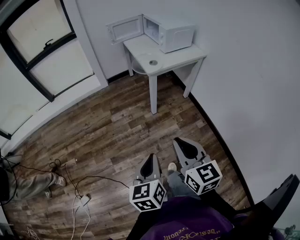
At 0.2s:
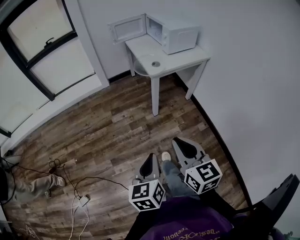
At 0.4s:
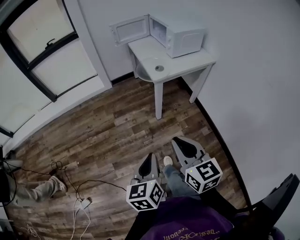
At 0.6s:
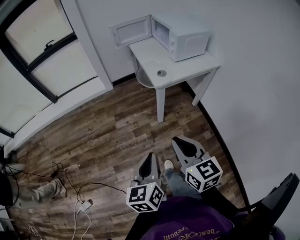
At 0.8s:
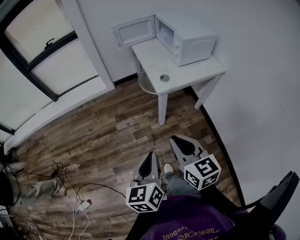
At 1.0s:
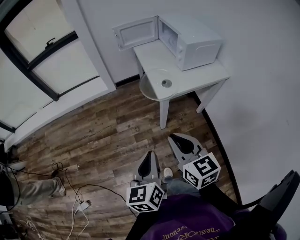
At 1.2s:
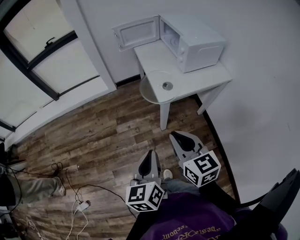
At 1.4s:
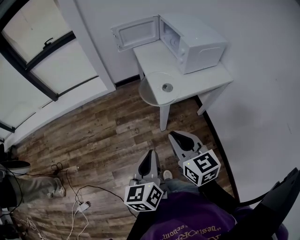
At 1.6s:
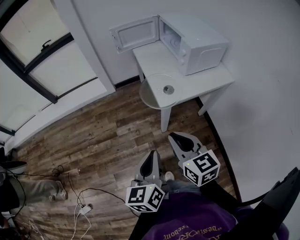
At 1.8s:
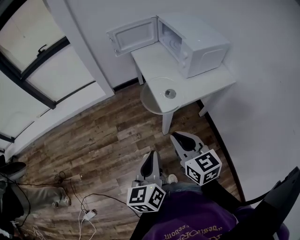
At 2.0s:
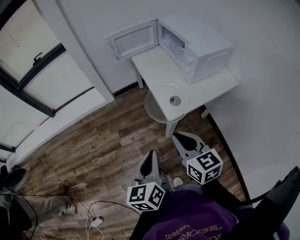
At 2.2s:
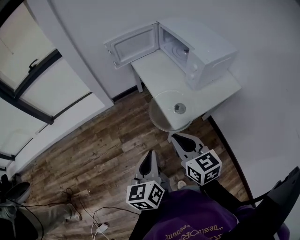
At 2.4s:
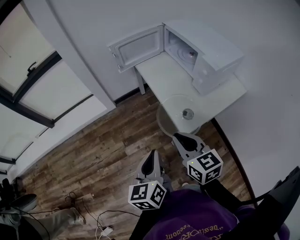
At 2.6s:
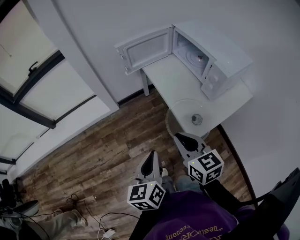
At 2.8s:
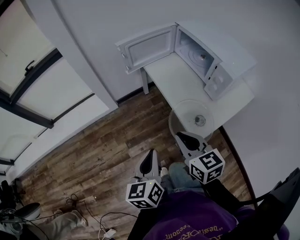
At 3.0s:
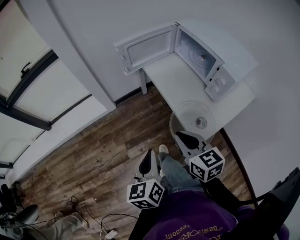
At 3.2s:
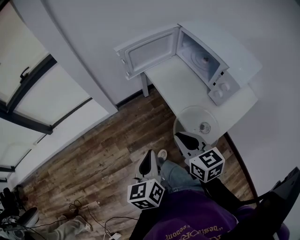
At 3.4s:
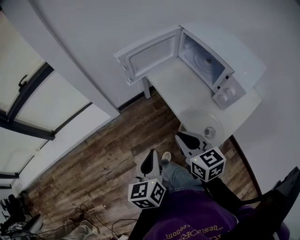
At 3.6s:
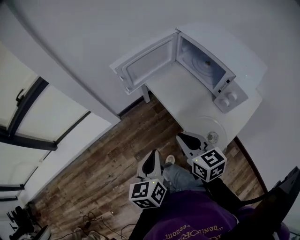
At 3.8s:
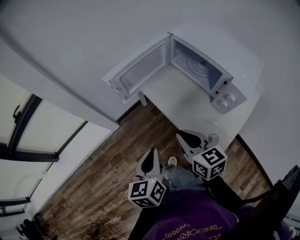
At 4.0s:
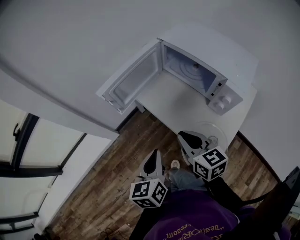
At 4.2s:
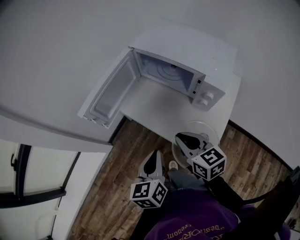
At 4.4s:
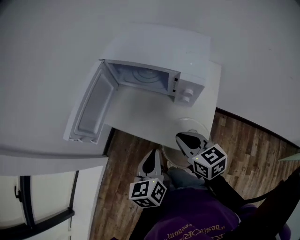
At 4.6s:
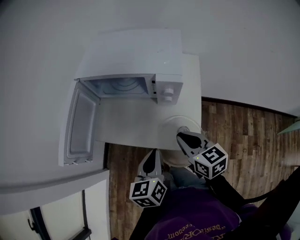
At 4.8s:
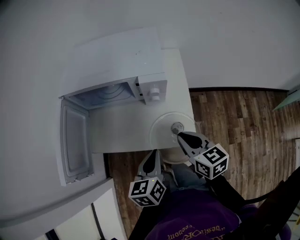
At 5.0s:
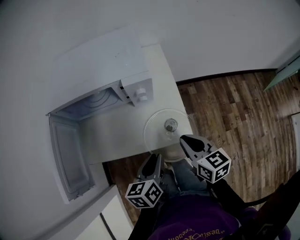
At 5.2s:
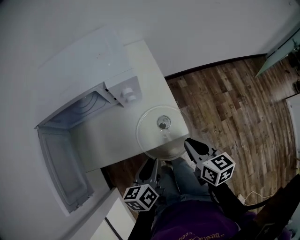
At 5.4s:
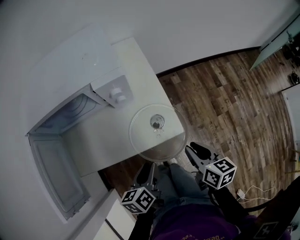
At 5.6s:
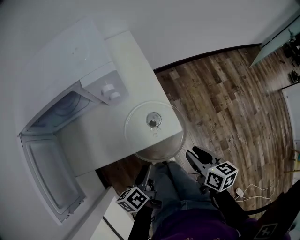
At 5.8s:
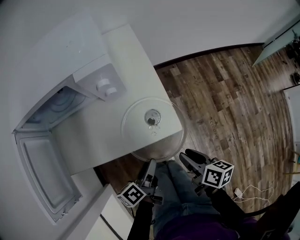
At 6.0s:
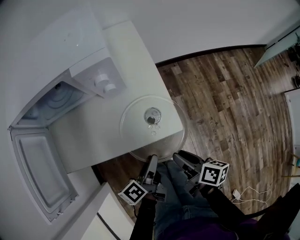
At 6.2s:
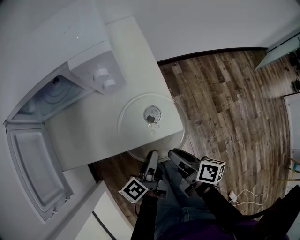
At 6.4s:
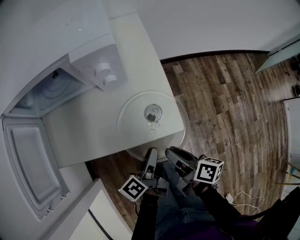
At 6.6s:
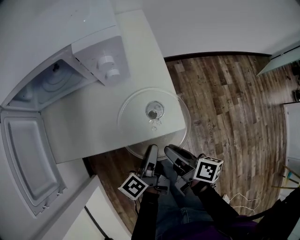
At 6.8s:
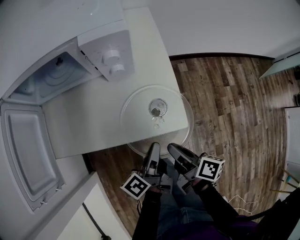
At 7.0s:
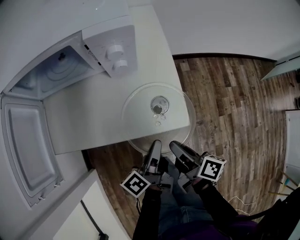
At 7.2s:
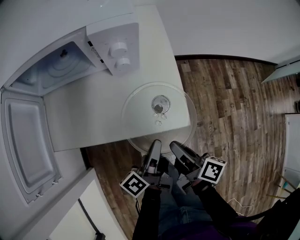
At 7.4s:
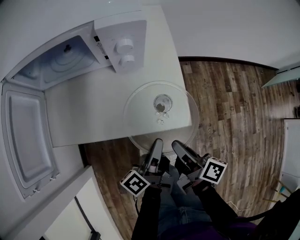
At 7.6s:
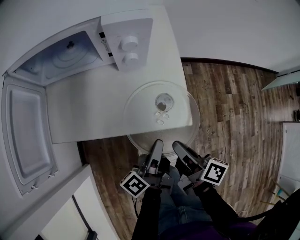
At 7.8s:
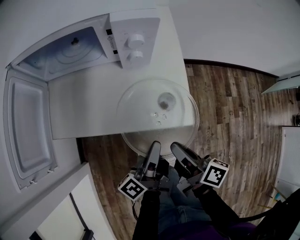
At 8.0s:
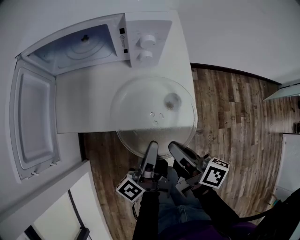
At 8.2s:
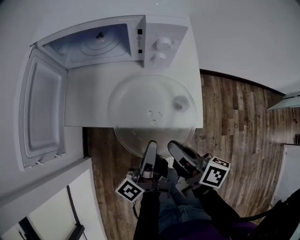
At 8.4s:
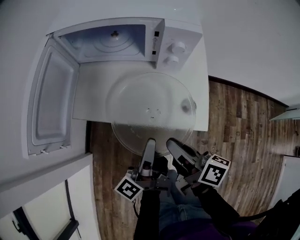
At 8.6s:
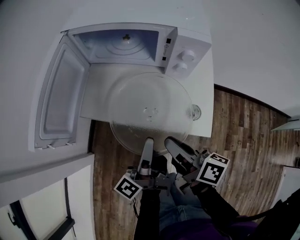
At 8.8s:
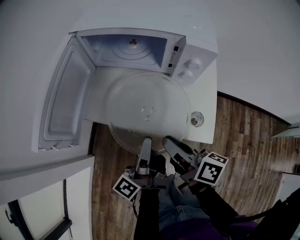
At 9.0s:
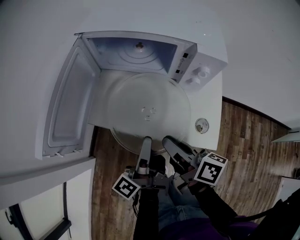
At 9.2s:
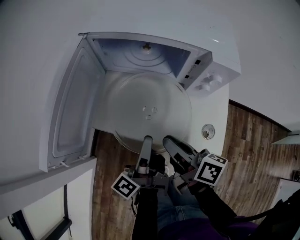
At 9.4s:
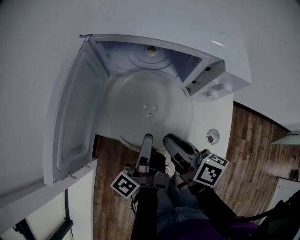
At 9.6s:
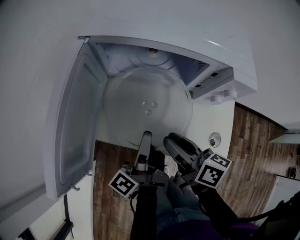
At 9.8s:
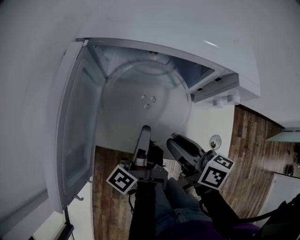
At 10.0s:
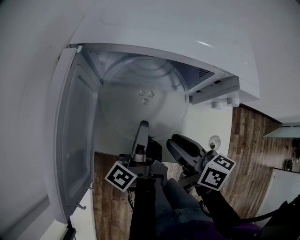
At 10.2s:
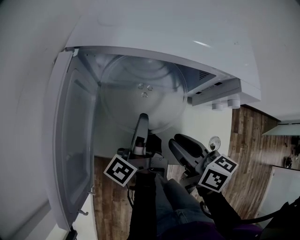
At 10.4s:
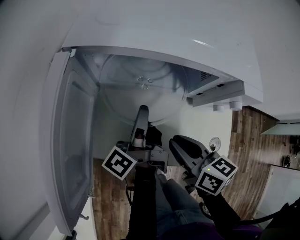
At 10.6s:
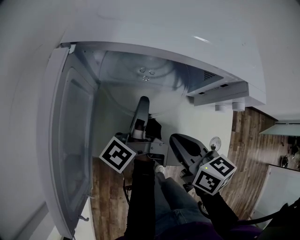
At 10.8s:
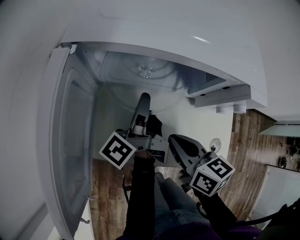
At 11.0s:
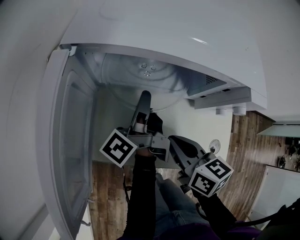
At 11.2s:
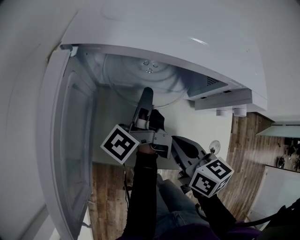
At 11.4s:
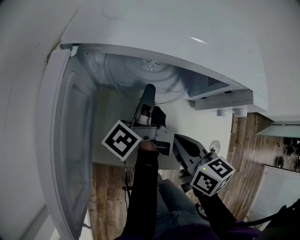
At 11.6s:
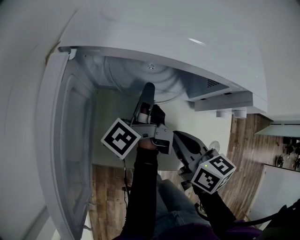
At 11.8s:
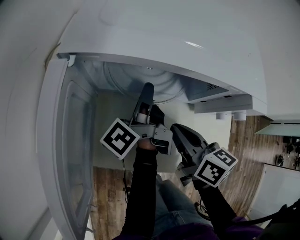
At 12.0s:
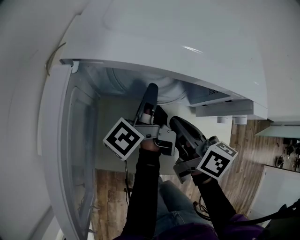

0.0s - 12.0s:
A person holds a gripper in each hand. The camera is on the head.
0.0s - 1.6s: The two grippers go about 35 cm forward.
1.6s - 3.0s: The right gripper heads forward, covering about 30 cm. The left gripper travels forward and to the left by some 35 cm.
3.0s - 4.4s: The left gripper moves roughly 20 cm, and swivels some 40 degrees. Meanwhile the right gripper moves about 15 cm, and turns by about 40 degrees.
4.4s - 6.0s: The left gripper heads downward, covering about 20 cm, turns by roughly 60 degrees, and opens its fingers, while the right gripper moves about 25 cm, rotates around the line of its fingers by some 60 degrees, clockwise from behind, and opens up.
6.0s - 7.6s: The right gripper closes up, while the left gripper turns by approximately 20 degrees, and closes.
7.6s - 9.0s: The right gripper ends up approximately 20 cm from where it was, and swivels some 30 degrees; the left gripper moves about 20 cm, and rotates some 30 degrees.
9.0s - 10.4s: The left gripper goes approximately 20 cm forward; the right gripper moves forward, some 10 cm, and rotates roughly 30 degrees.
10.4s - 12.0s: Both grippers travel together forward, roughly 10 cm.

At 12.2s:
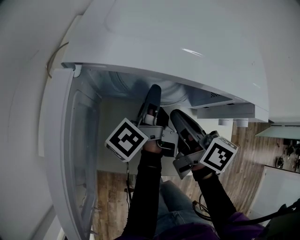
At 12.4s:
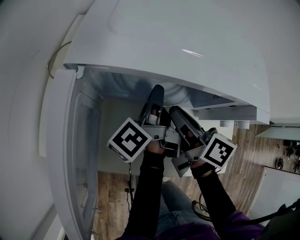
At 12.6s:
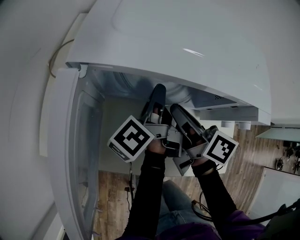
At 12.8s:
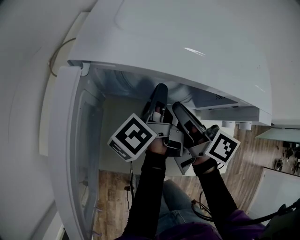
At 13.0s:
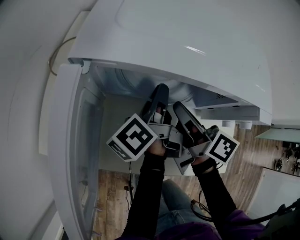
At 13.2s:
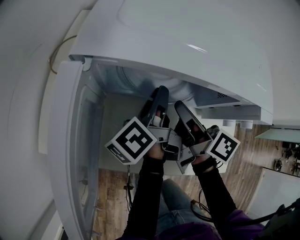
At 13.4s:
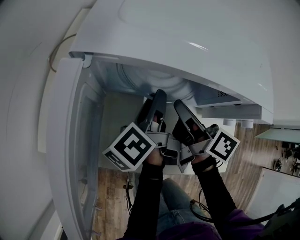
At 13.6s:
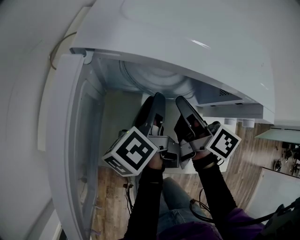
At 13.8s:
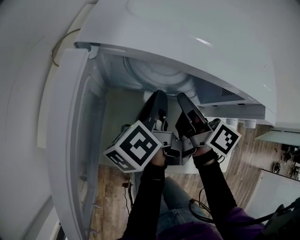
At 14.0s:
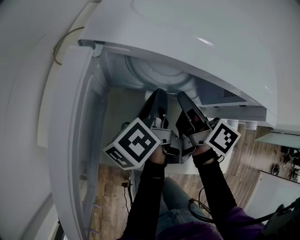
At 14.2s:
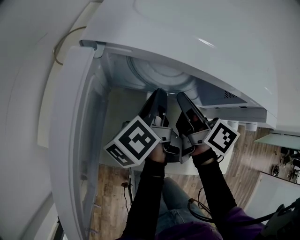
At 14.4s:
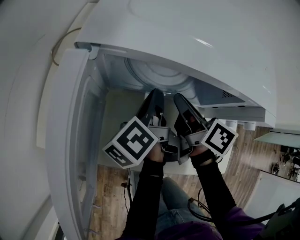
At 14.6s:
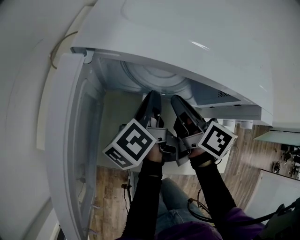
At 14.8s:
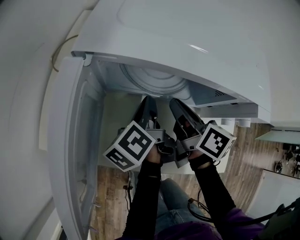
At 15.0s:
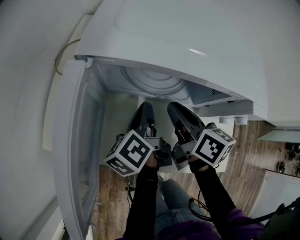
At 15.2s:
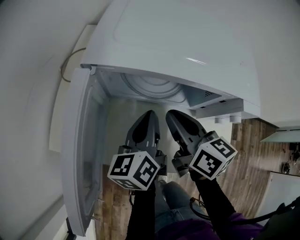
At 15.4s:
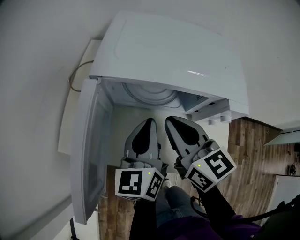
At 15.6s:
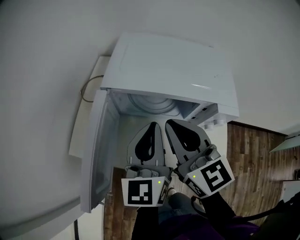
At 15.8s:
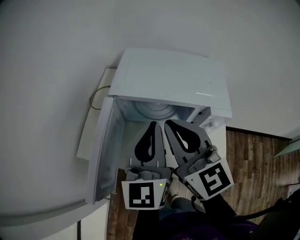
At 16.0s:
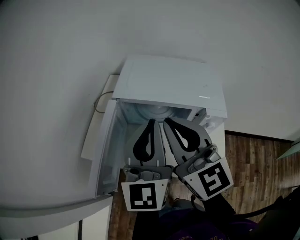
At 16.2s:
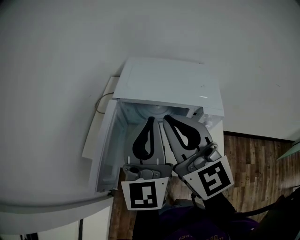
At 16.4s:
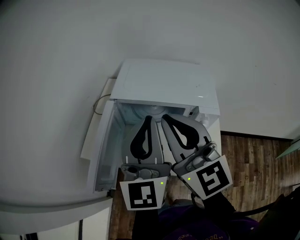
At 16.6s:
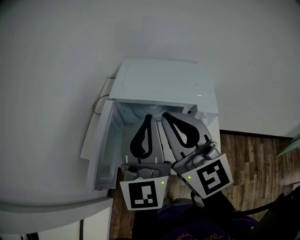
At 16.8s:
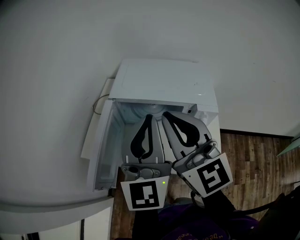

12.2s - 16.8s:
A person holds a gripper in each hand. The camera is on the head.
12.2s - 13.8s: The left gripper opens, then closes again.
13.8s - 15.2s: The left gripper changes place by roughly 5 cm, and rotates approximately 30 degrees. The right gripper is displaced upward by about 5 cm, and turns by approximately 20 degrees.
15.2s - 16.8s: Both grippers travel together upward, about 30 cm. The left gripper rotates around the line of its fingers by roughly 50 degrees, clockwise from behind. The right gripper twists approximately 40 degrees counterclockwise, seen from behind.

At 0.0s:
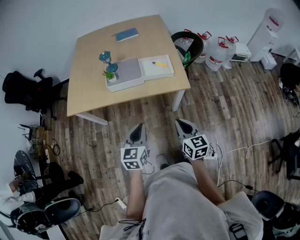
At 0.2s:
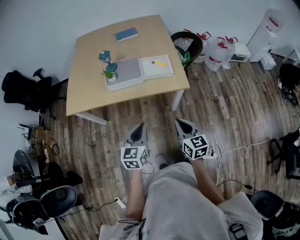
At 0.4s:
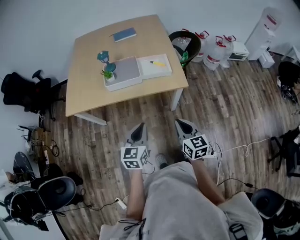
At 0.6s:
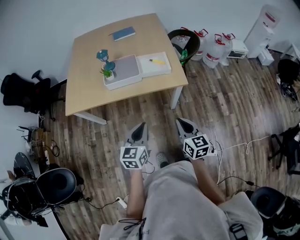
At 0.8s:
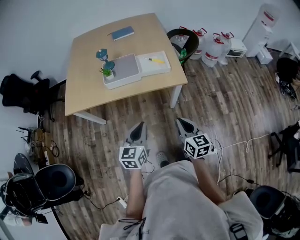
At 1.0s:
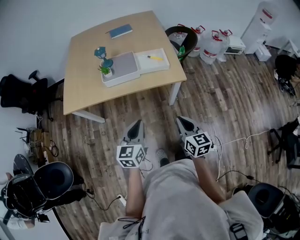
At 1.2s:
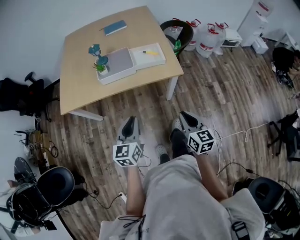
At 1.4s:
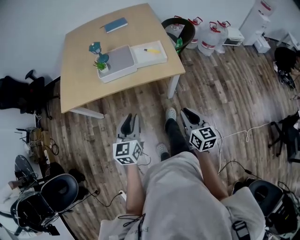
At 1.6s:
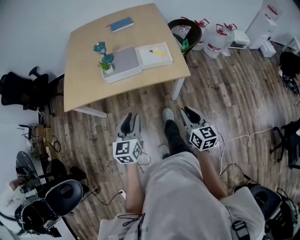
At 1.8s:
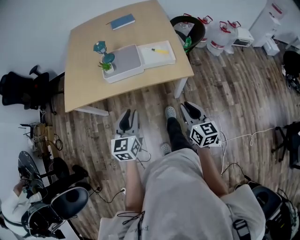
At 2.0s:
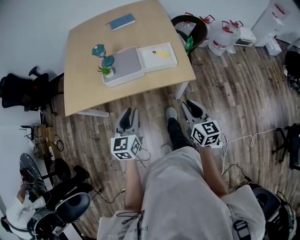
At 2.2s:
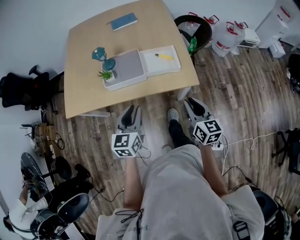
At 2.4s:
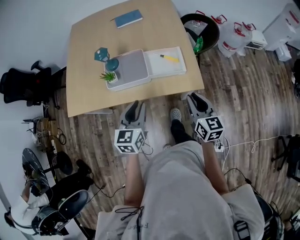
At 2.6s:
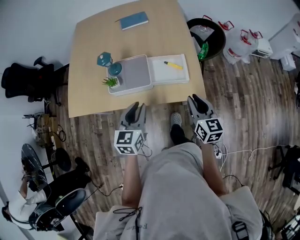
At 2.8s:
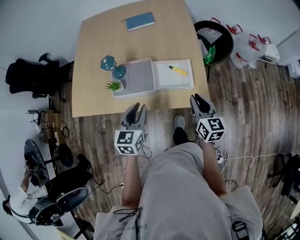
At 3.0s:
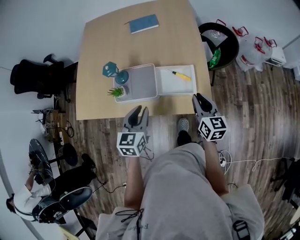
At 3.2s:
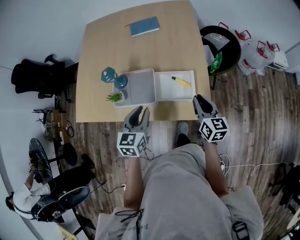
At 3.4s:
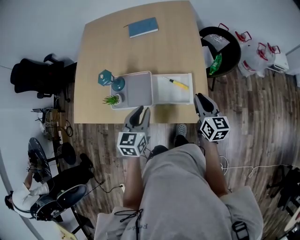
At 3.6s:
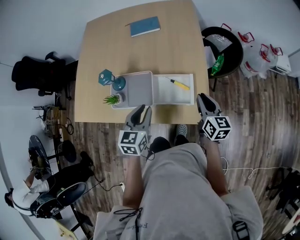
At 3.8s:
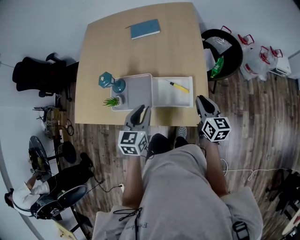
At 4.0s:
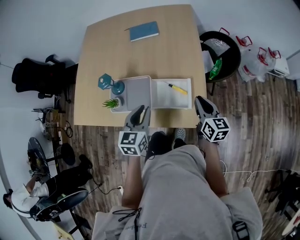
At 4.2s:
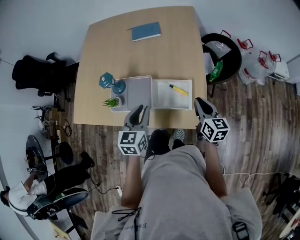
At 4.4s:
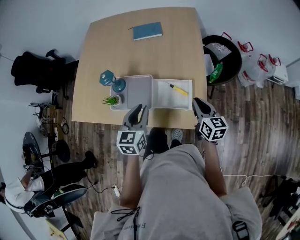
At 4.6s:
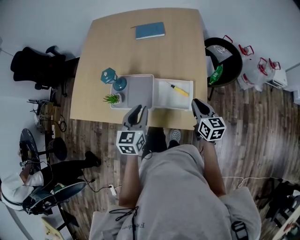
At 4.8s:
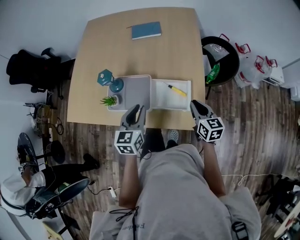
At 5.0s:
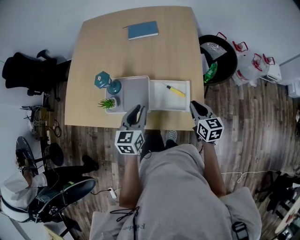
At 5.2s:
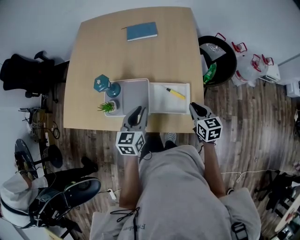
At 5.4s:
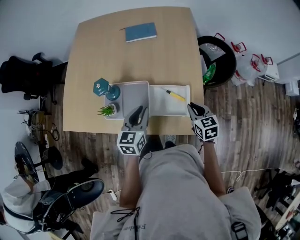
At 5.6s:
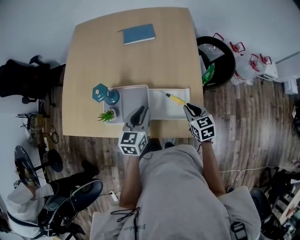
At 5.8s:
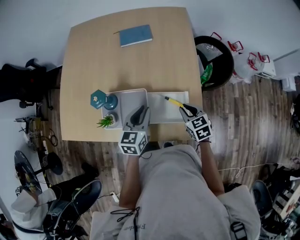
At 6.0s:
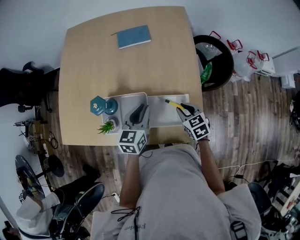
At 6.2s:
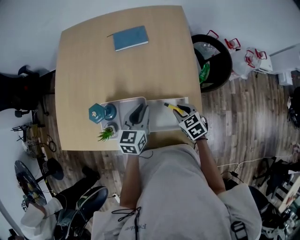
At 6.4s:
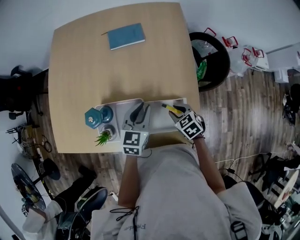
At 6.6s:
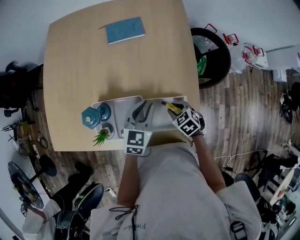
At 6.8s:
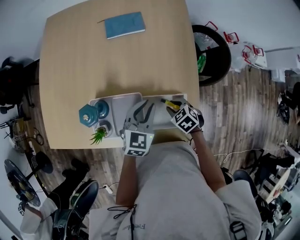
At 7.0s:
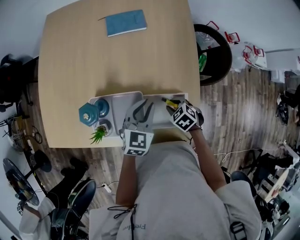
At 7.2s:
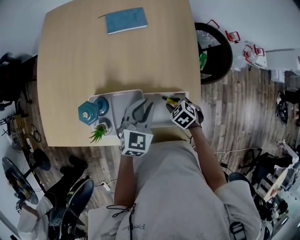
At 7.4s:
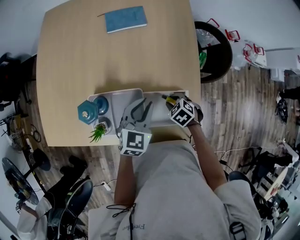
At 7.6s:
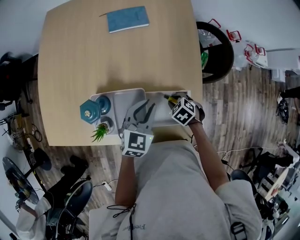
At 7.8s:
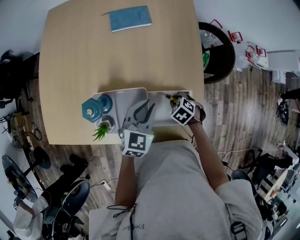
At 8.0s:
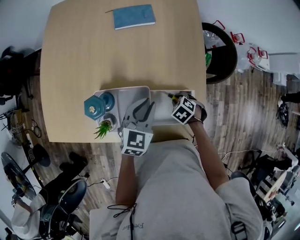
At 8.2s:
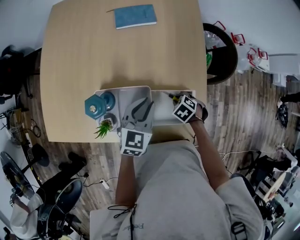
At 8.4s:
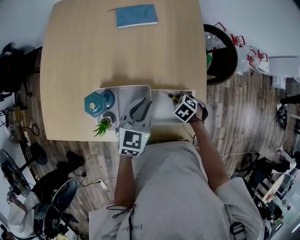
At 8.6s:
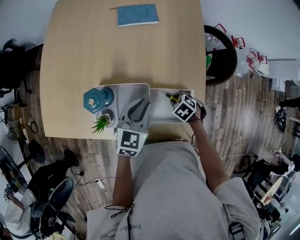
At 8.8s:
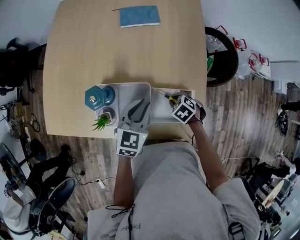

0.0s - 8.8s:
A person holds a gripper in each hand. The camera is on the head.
0.0s - 1.4s: The grippers move only a little.
1.4s - 3.0s: The grippers both shift forward by about 35 cm.
3.0s - 4.4s: The grippers both shift forward by roughly 5 cm.
4.4s - 5.8s: The left gripper goes roughly 10 cm forward. Meanwhile the right gripper shifts about 10 cm downward and forward, and turns by roughly 30 degrees.
5.8s - 7.4s: The right gripper moves downward, some 10 cm, and turns by approximately 40 degrees; the left gripper changes place by roughly 5 cm, and rotates about 20 degrees.
7.4s - 8.8s: The grippers move only a little.
